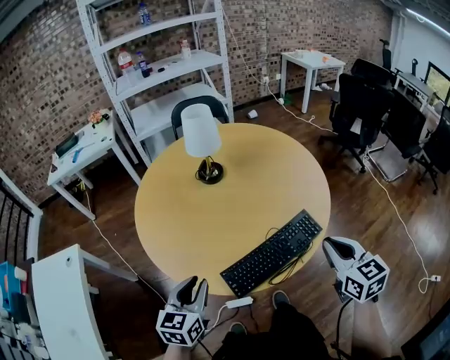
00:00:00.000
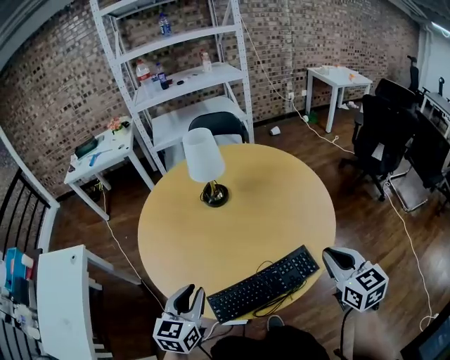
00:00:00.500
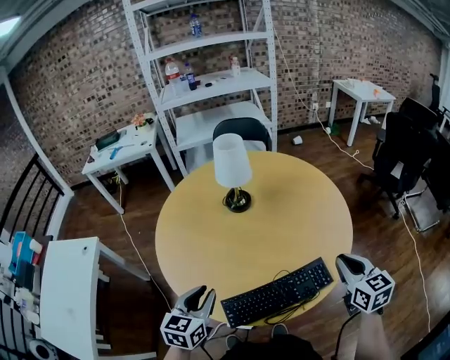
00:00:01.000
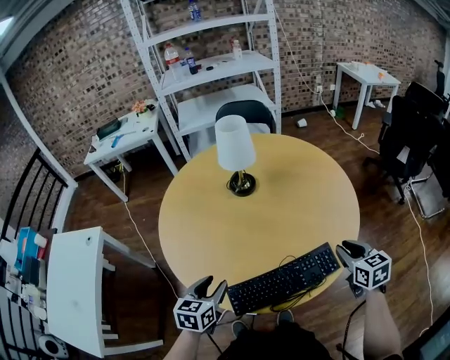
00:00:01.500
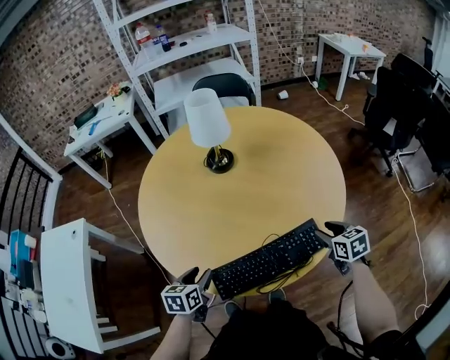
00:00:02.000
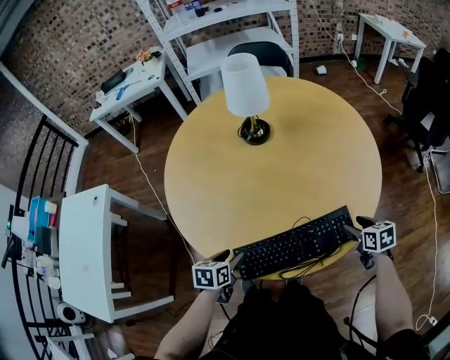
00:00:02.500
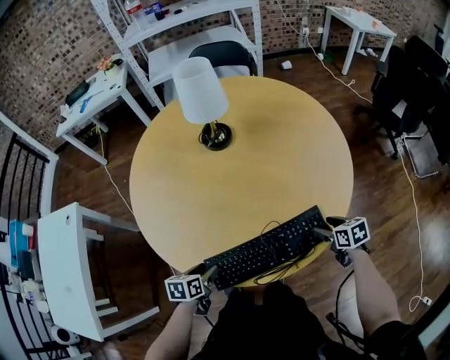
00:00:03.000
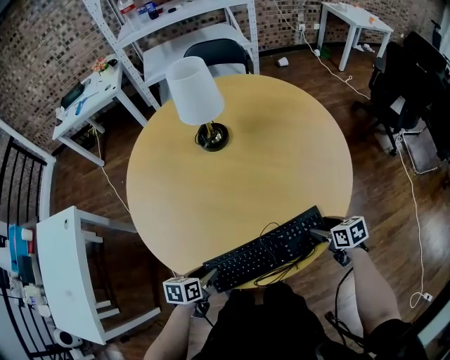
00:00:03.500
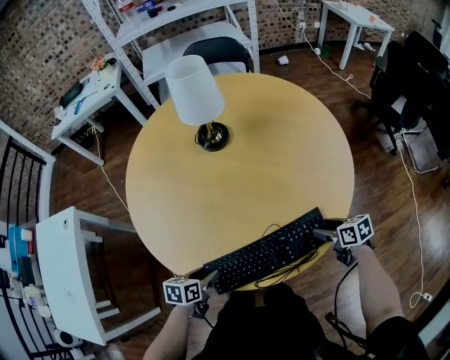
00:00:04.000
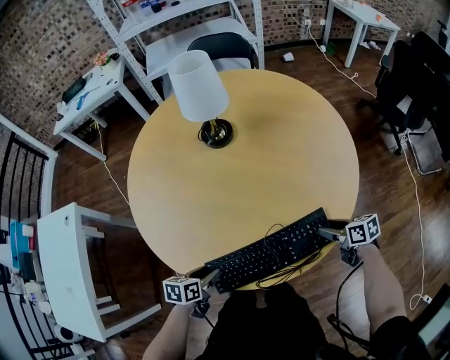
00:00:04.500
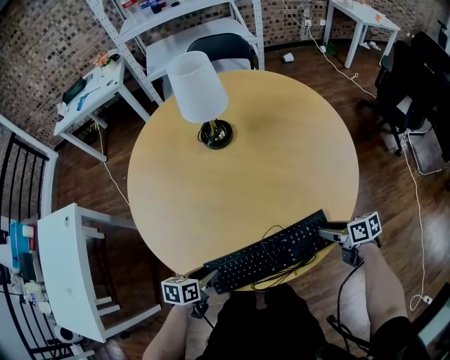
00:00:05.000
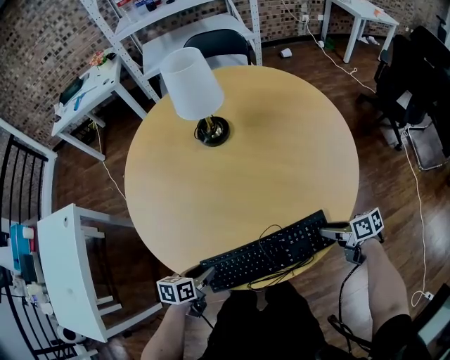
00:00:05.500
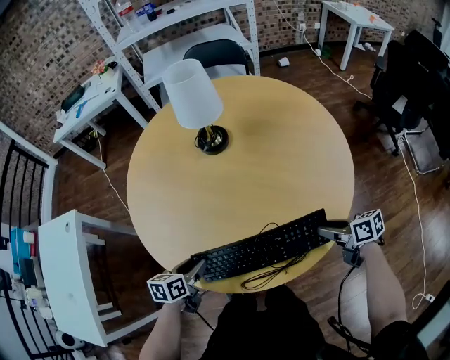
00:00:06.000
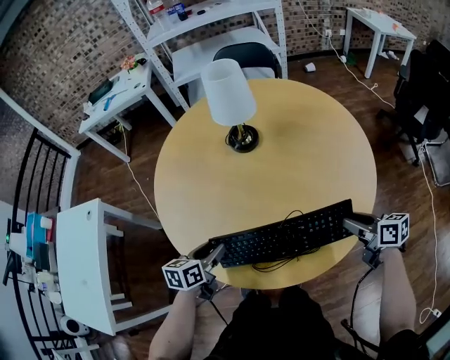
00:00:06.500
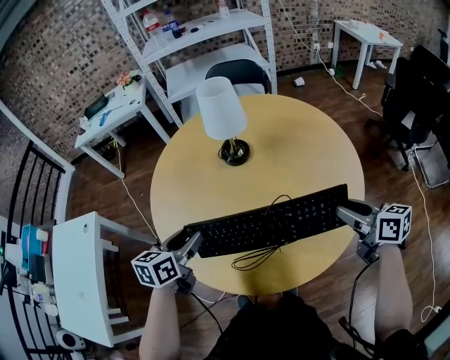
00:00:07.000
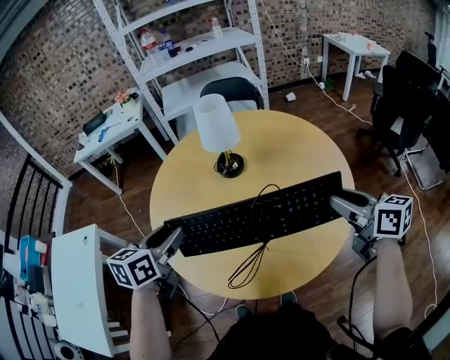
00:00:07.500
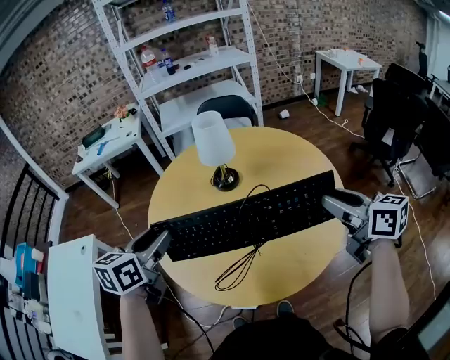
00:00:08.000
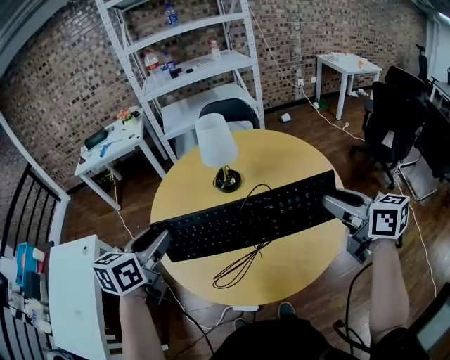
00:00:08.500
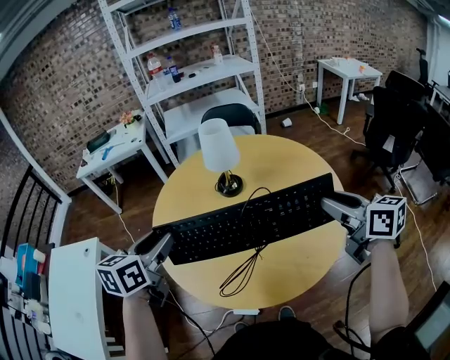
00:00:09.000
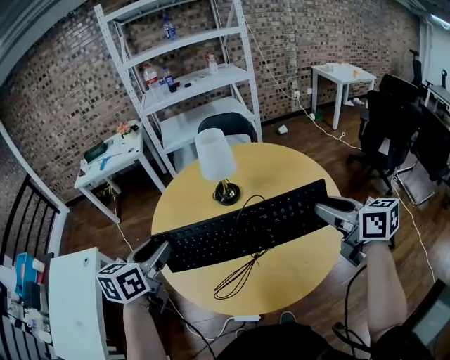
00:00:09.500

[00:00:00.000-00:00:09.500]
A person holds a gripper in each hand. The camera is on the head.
00:00:00.000 to 00:00:02.000: The right gripper shifts about 30 cm downward, forward and to the right, turns by approximately 30 degrees, and opens, while the left gripper is displaced downward and forward by about 15 cm, swivels approximately 30 degrees, and opens its fingers.
00:00:02.000 to 00:00:04.000: The grippers both shift downward by about 10 cm. The right gripper rotates roughly 20 degrees.
00:00:04.000 to 00:00:05.500: The grippers make only small movements.
00:00:05.500 to 00:00:07.500: Both grippers travel together upward, approximately 35 cm. The left gripper turns by about 30 degrees. Meanwhile the right gripper swivels roughly 40 degrees.
00:00:07.500 to 00:00:09.500: Both grippers move upward, about 5 cm.

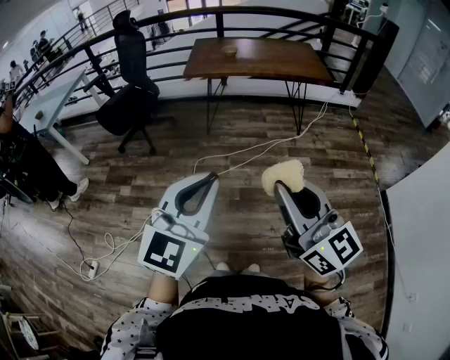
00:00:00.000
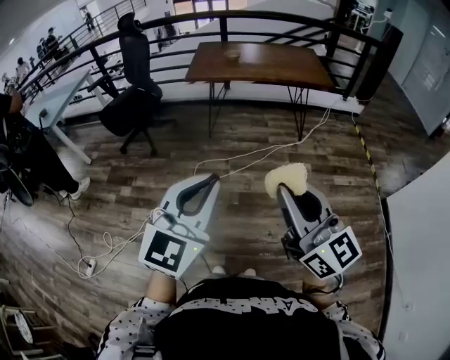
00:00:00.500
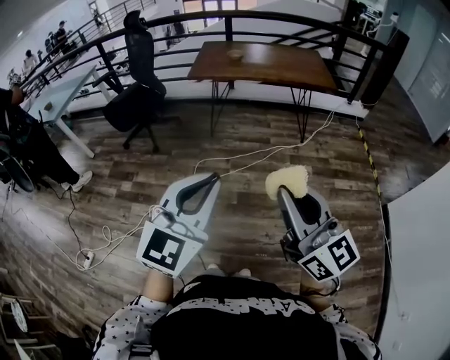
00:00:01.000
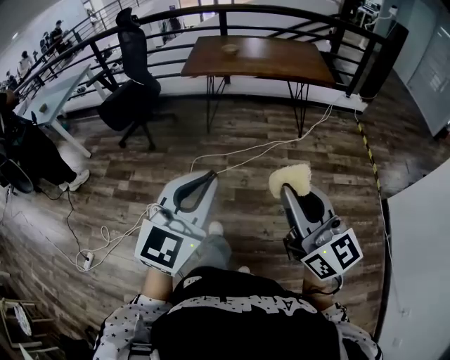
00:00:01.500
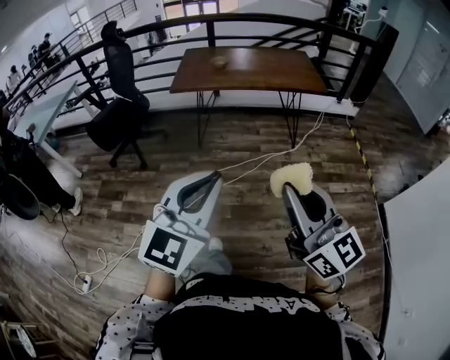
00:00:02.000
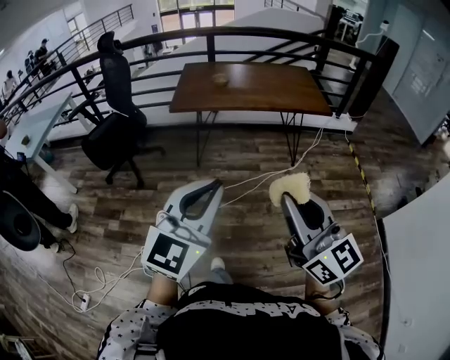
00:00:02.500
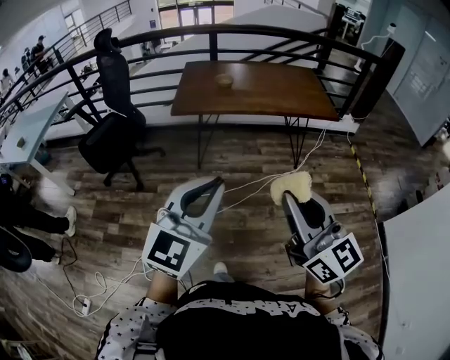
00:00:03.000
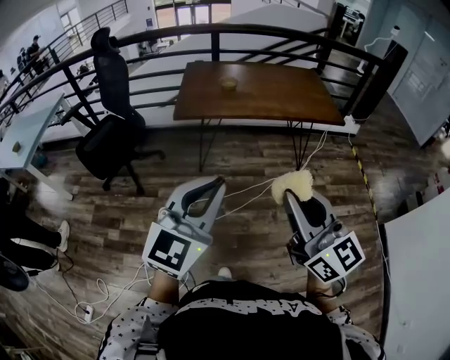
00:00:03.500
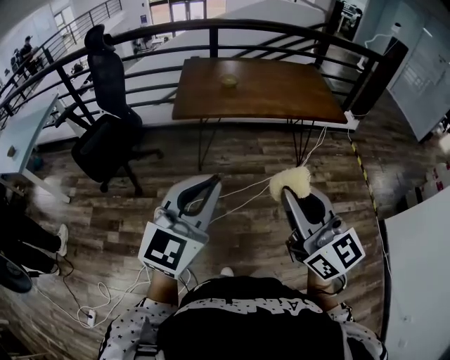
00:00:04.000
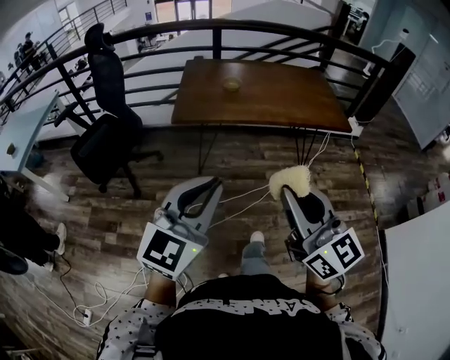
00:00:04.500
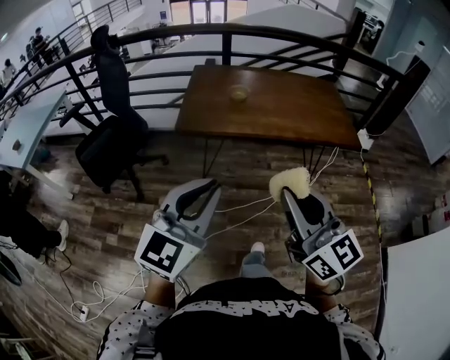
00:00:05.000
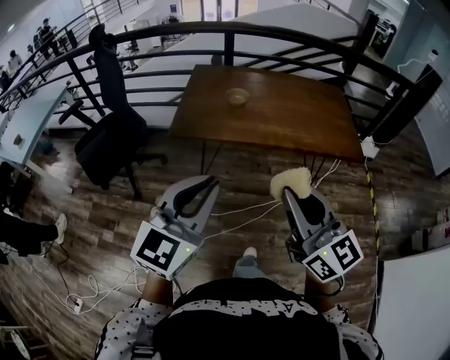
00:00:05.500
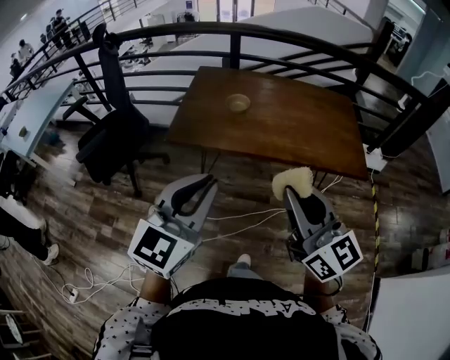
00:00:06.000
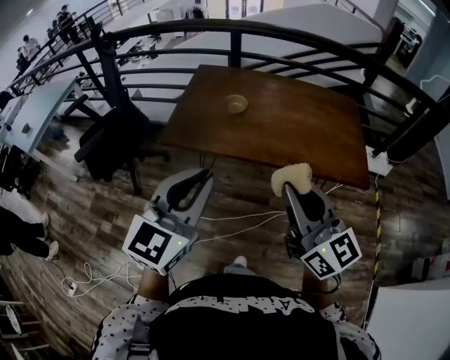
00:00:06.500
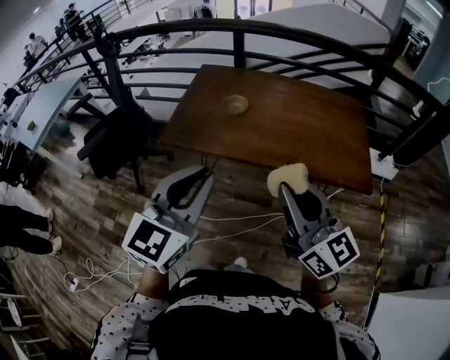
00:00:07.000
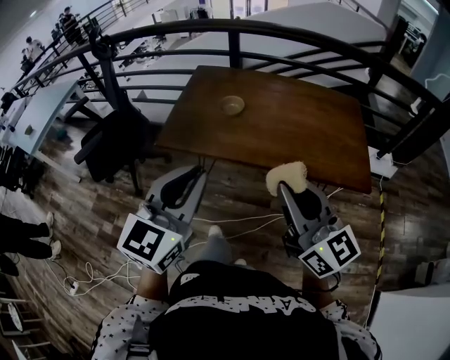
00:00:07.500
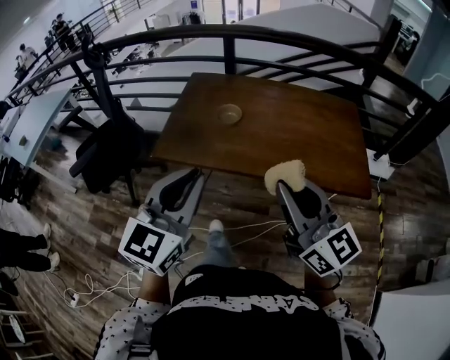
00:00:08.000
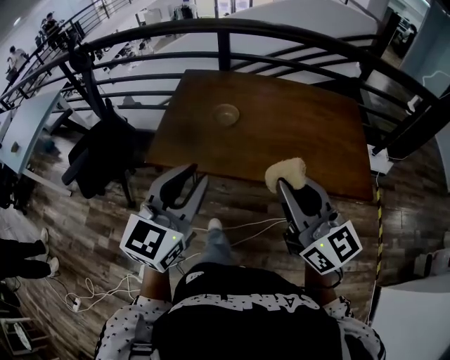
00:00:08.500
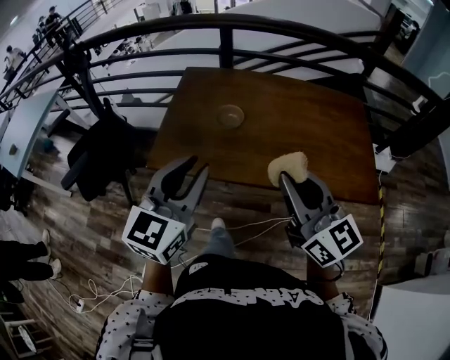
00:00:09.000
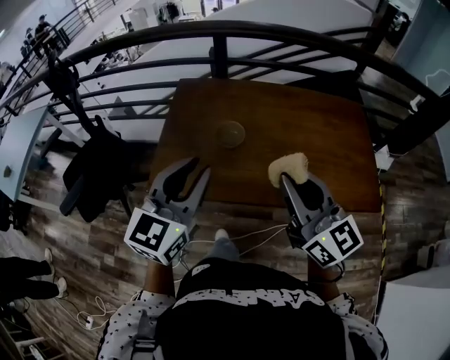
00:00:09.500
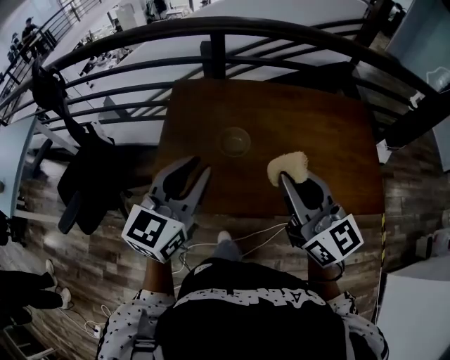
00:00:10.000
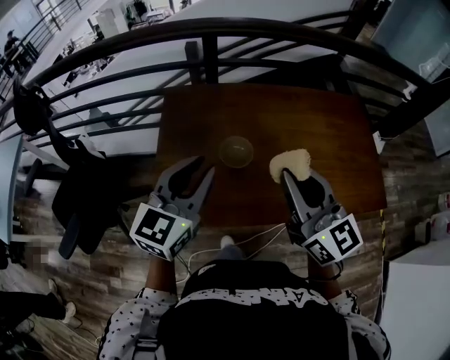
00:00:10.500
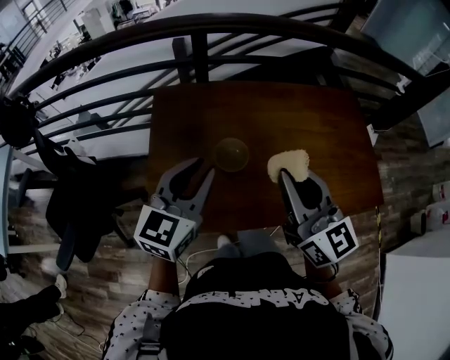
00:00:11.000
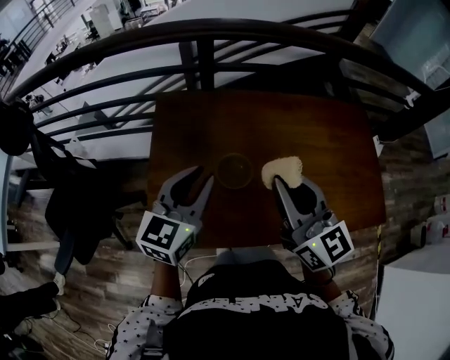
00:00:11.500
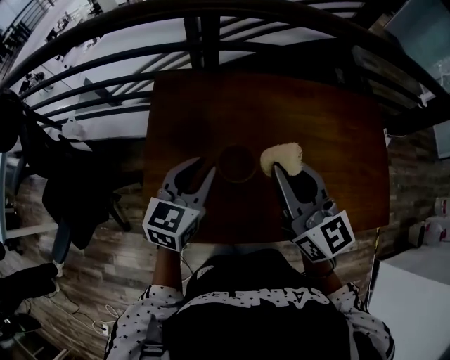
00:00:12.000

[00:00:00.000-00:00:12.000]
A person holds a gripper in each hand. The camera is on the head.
00:00:00.000 to 00:00:02.000: The two grippers go about 15 cm forward and to the right.
00:00:02.000 to 00:00:04.000: Both grippers travel together forward and to the left, roughly 30 cm.
00:00:04.000 to 00:00:06.000: Both grippers move forward and to the right, about 30 cm.
00:00:06.000 to 00:00:08.000: The left gripper moves forward, approximately 10 cm. The right gripper heads forward and to the right, covering about 10 cm.
00:00:08.000 to 00:00:10.000: Both grippers move forward, about 25 cm.
00:00:10.000 to 00:00:12.000: The right gripper moves forward, about 20 cm. The left gripper travels forward and downward by roughly 25 cm.

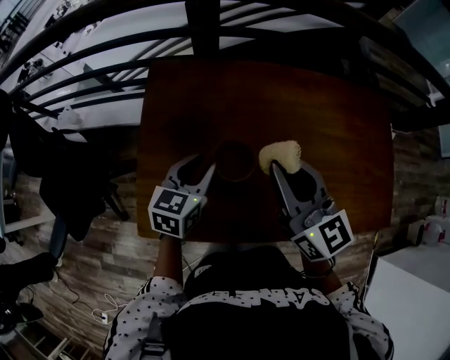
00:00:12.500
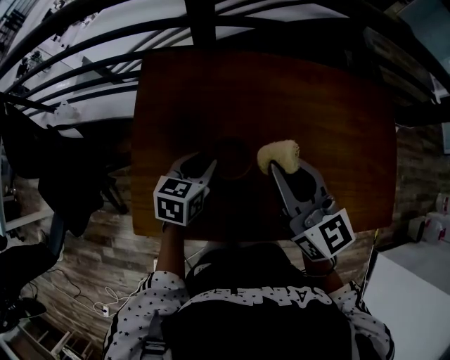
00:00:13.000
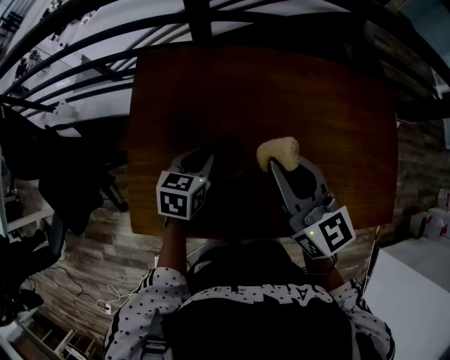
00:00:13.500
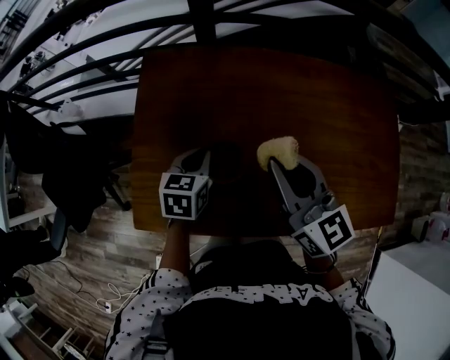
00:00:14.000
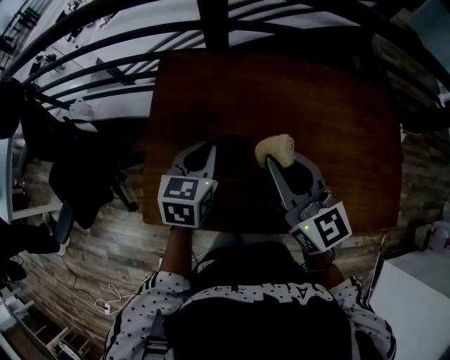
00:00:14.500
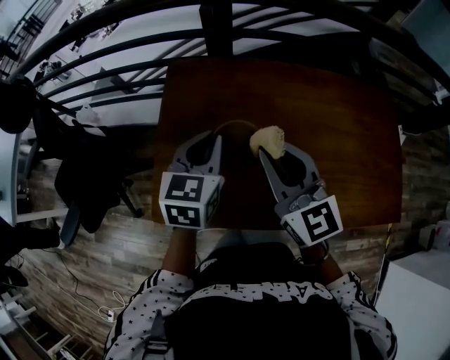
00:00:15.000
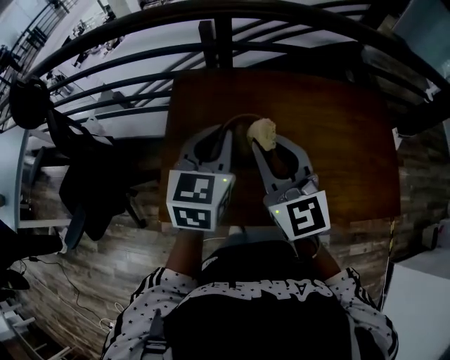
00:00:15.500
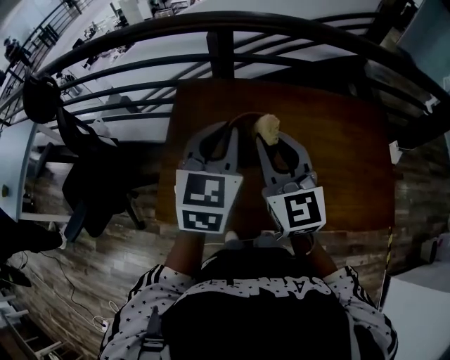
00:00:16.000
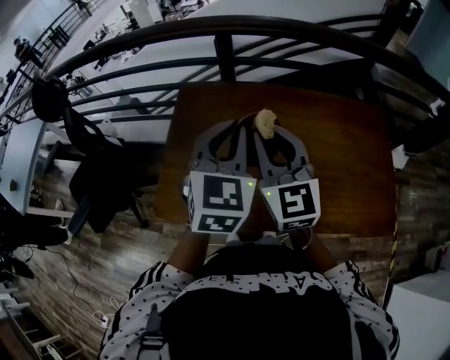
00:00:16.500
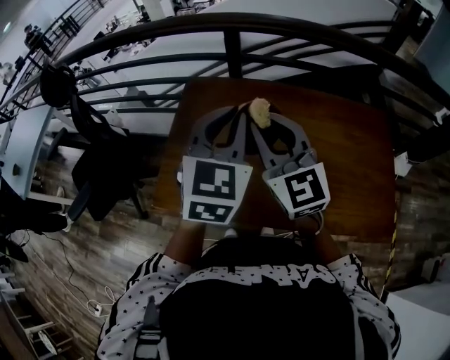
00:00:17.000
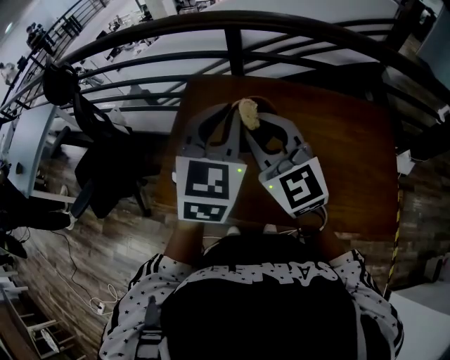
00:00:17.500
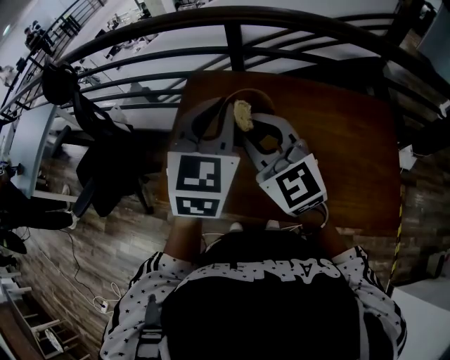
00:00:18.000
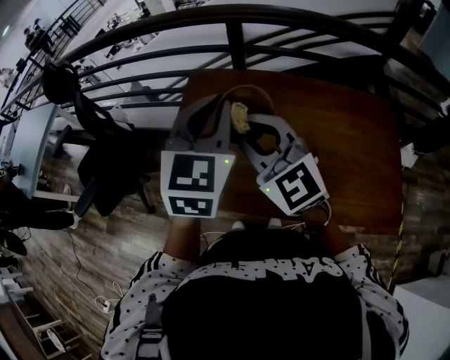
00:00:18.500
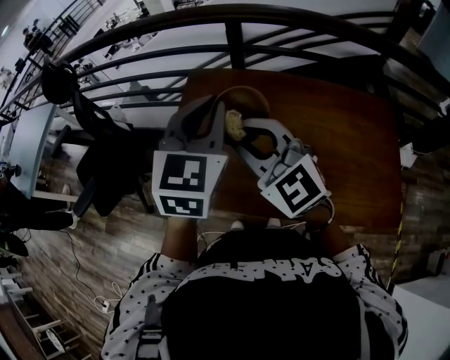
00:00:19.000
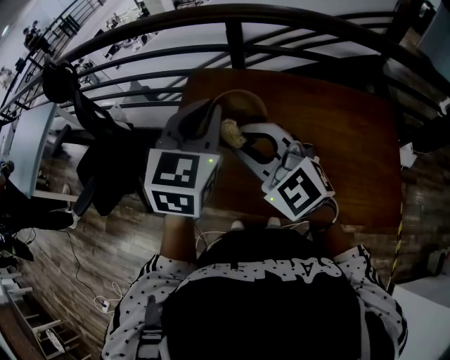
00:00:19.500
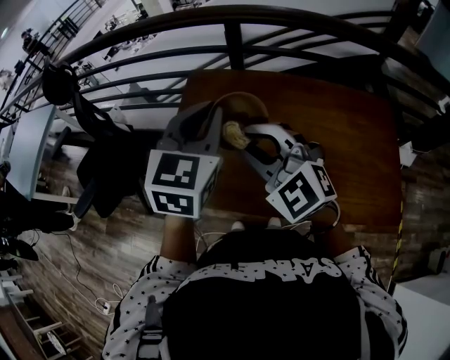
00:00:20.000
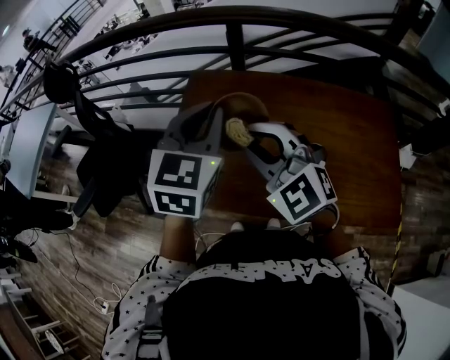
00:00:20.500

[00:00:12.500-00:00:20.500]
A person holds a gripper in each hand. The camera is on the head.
00:00:12.500 to 00:00:14.500: The left gripper travels downward and back again, about 5 cm each way.
00:00:14.500 to 00:00:16.500: The right gripper goes roughly 10 cm upward, and turns by some 20 degrees. The left gripper heads upward, covering some 20 cm, and turns by some 30 degrees.
00:00:16.500 to 00:00:18.500: The right gripper shifts approximately 5 cm to the left, and turns by approximately 30 degrees. Meanwhile the left gripper moves about 5 cm.
00:00:18.500 to 00:00:20.500: There are only small adjustments of the grippers.
